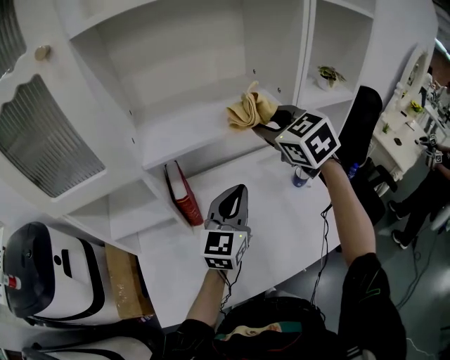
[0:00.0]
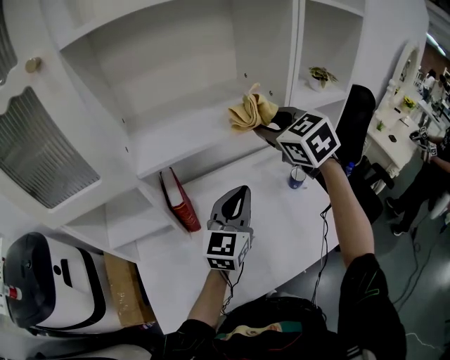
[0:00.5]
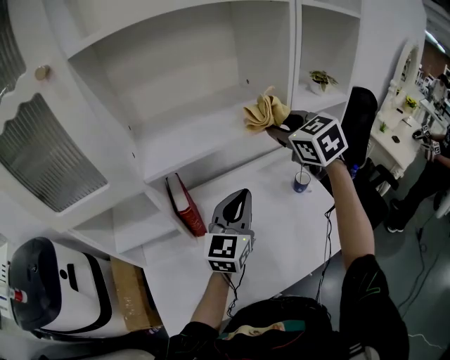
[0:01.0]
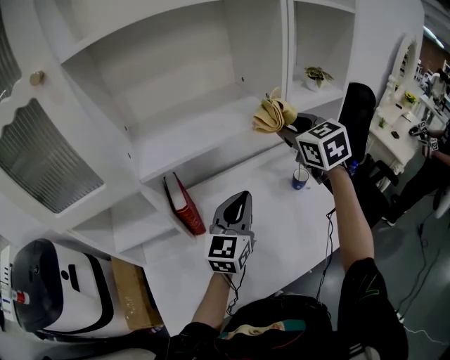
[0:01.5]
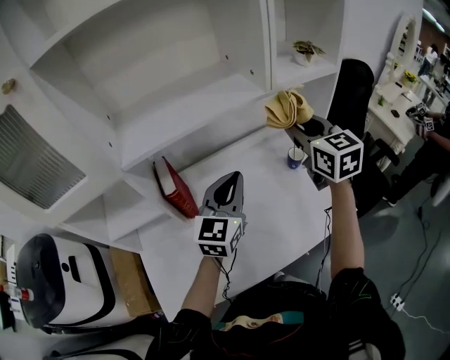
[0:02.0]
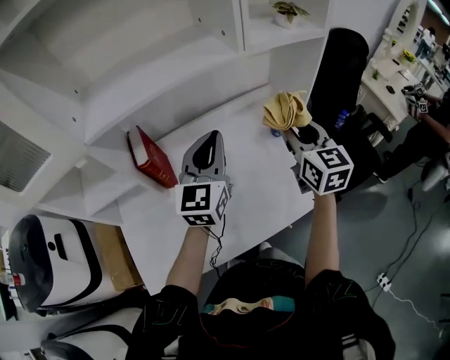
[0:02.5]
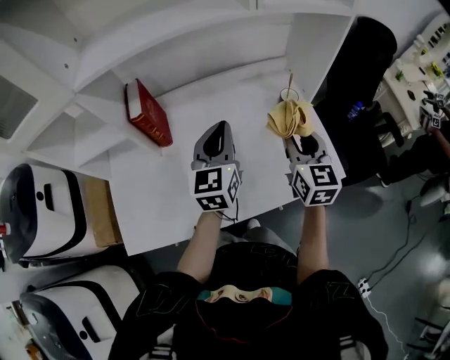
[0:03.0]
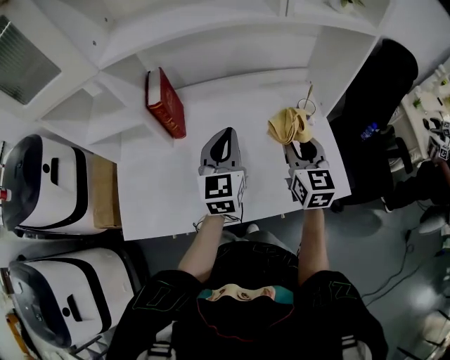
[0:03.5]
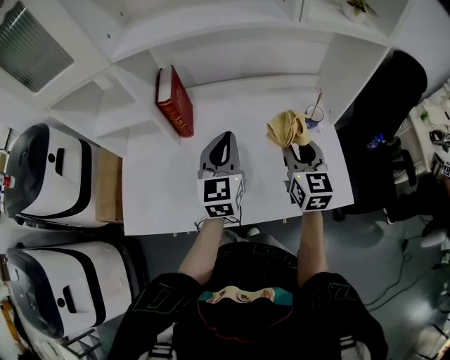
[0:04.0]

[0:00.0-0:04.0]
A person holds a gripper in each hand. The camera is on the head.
0:00.0 to 0:02.0: The right gripper shifts approximately 15 cm to the right, and changes its angle by roughly 30 degrees; the left gripper changes place by approximately 5 cm.
0:02.0 to 0:04.0: The right gripper is displaced downward and backward by about 20 cm; the left gripper travels downward by some 10 cm, and turns by some 30 degrees.

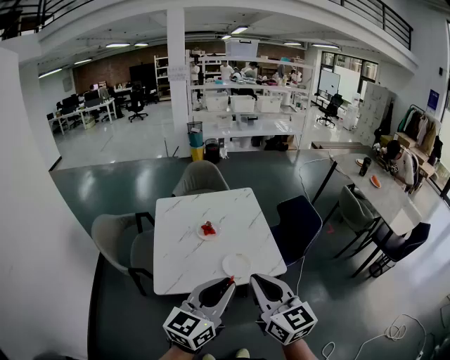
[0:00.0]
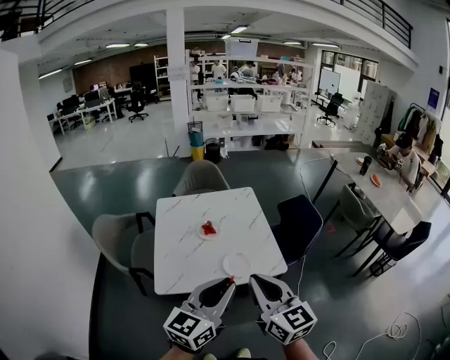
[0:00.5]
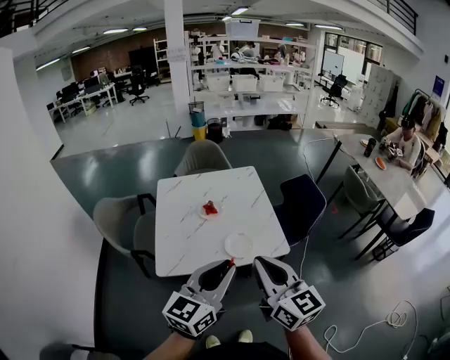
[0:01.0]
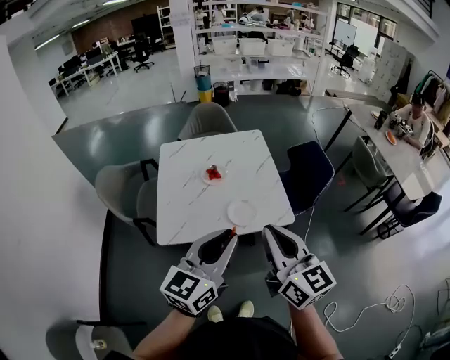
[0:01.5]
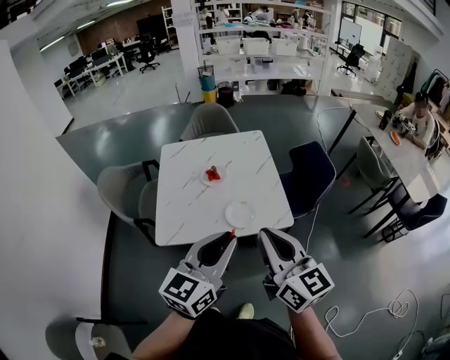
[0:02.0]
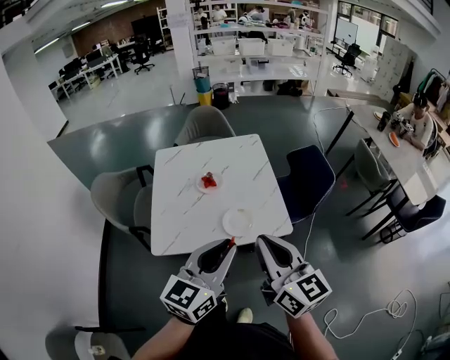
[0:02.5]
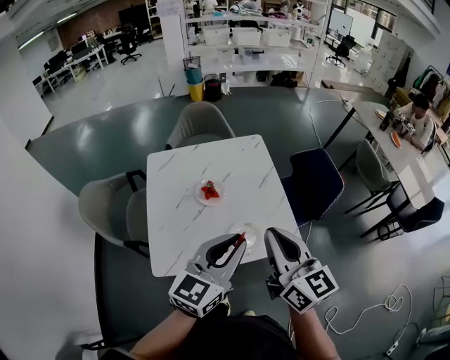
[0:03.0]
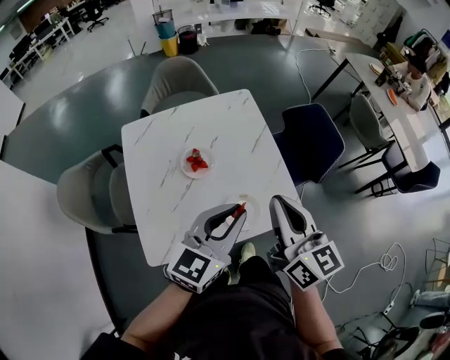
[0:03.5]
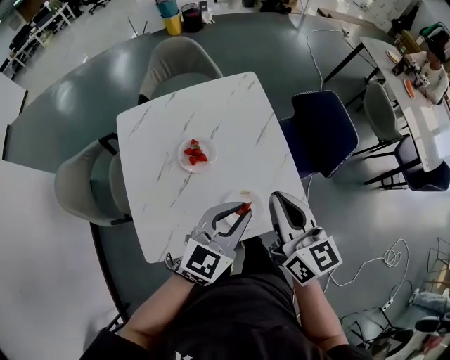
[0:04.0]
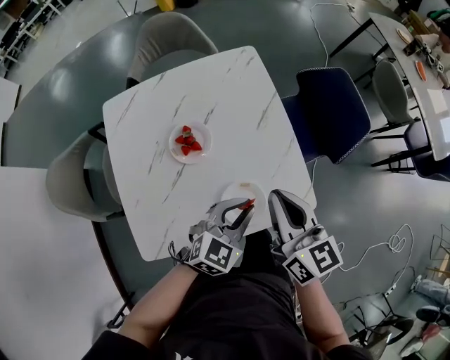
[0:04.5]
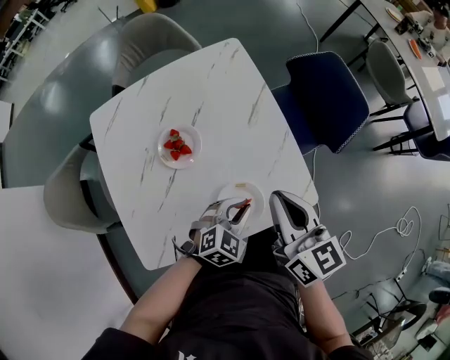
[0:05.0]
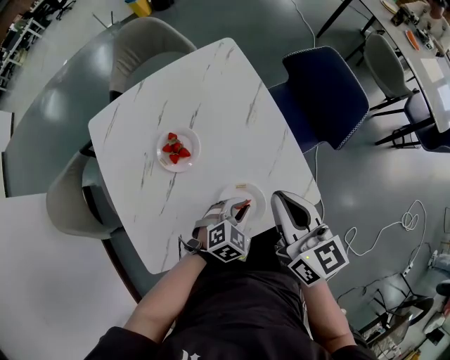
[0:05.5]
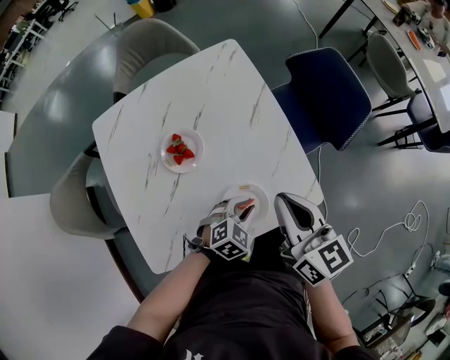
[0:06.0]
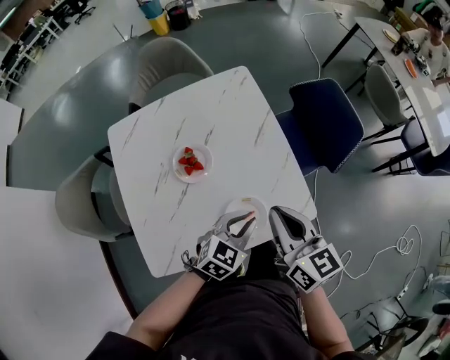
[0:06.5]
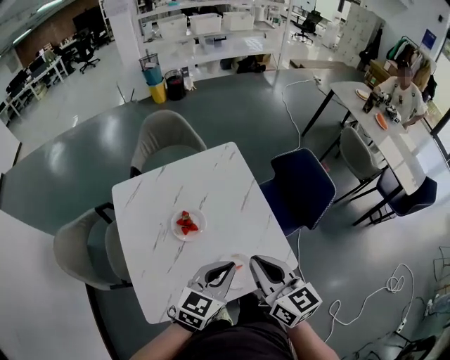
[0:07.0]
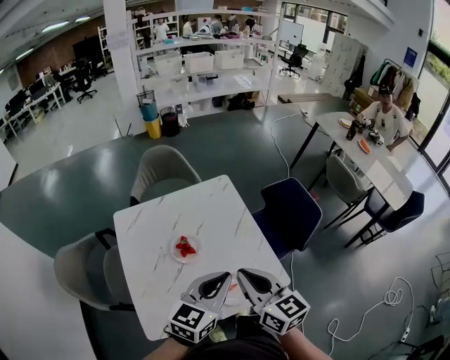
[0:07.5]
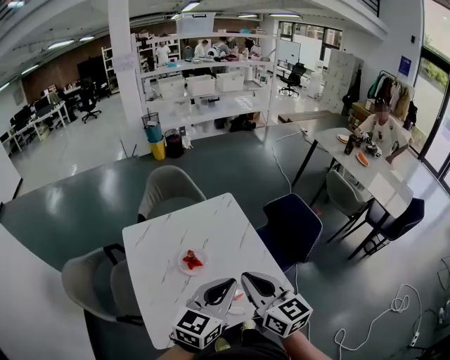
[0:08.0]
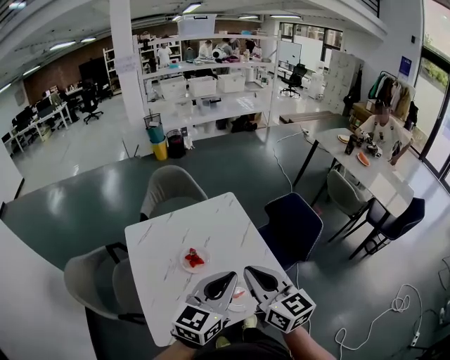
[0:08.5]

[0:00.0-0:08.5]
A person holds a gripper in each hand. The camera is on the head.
0:00.0 to 0:02.0: The right gripper goes about 5 cm to the right.
0:02.0 to 0:04.0: Both grippers move forward and downward, roughly 30 cm. The left gripper changes its angle by roughly 20 degrees.
0:04.0 to 0:06.5: The left gripper shifts some 15 cm downward, and rotates roughly 20 degrees; the right gripper moves downward, approximately 5 cm.
0:06.5 to 0:08.5: The left gripper heads upward, covering about 30 cm, and swivels some 30 degrees; the right gripper travels upward by approximately 15 cm.

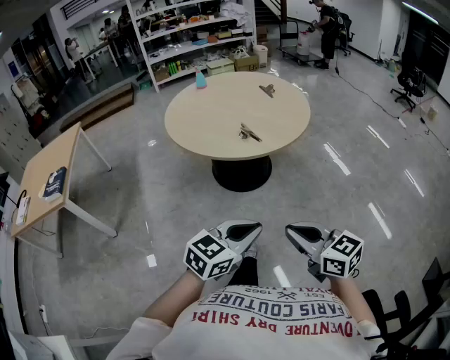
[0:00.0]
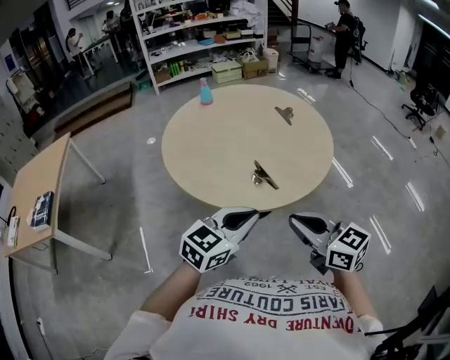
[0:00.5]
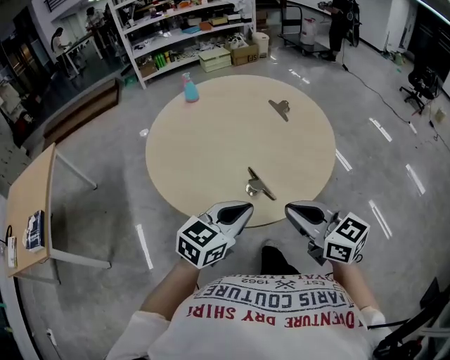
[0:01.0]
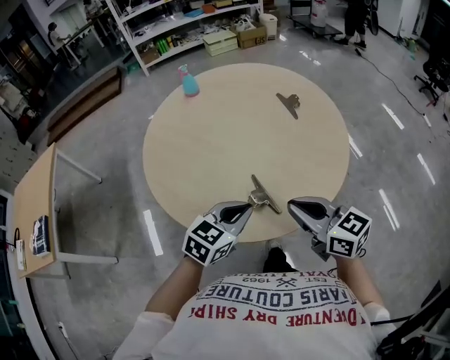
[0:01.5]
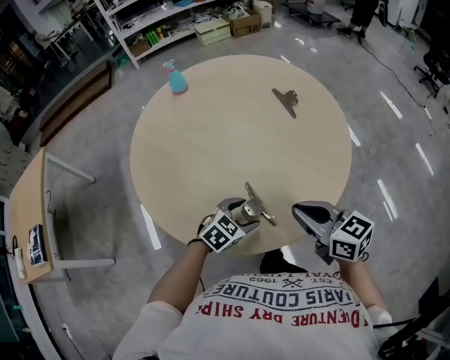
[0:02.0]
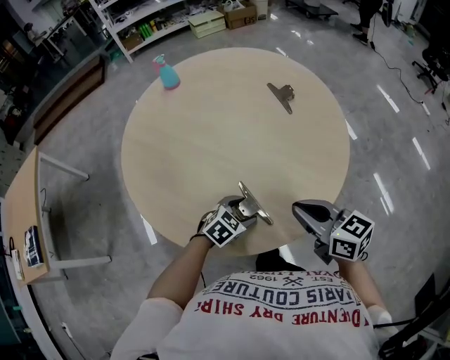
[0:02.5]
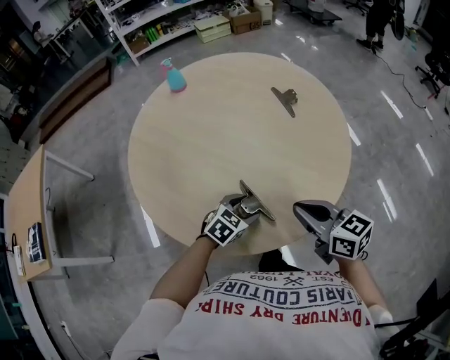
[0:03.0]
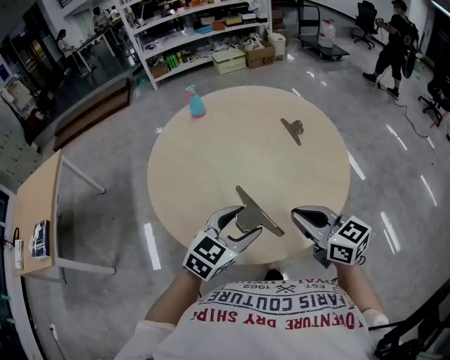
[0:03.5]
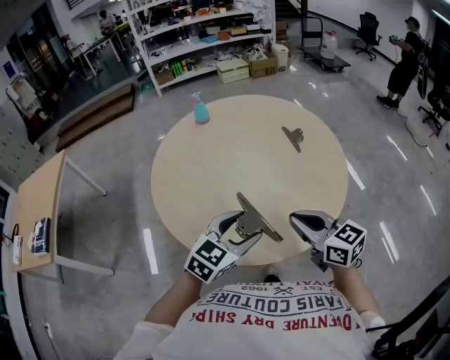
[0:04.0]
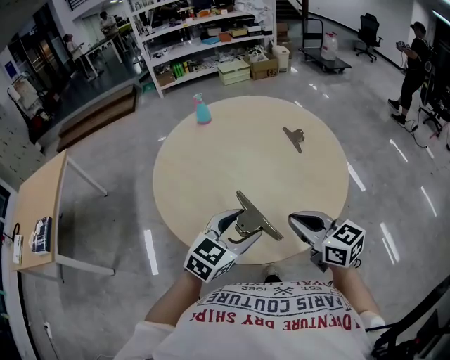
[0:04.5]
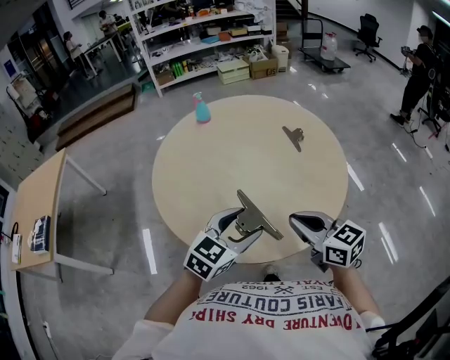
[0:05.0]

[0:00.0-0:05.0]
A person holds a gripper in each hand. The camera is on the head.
0:00.0 to 0:02.5: The two grippers travel together, forward, about 50 cm. The left gripper is displaced downward by roughly 25 cm, tips its fingers downward by some 30 degrees, and opens.
0:02.5 to 0:05.0: The right gripper heads upward, covering about 5 cm. The left gripper heads upward, covering about 25 cm, and changes its angle by about 30 degrees.

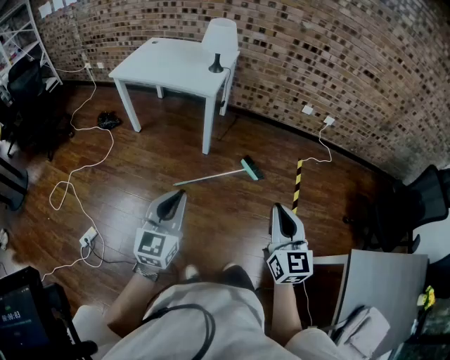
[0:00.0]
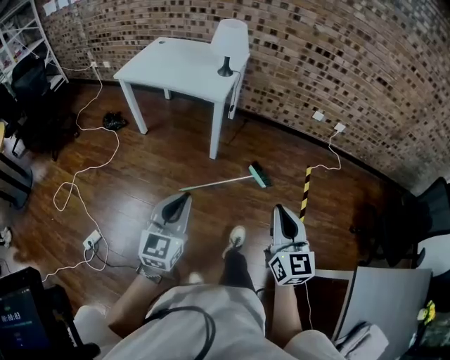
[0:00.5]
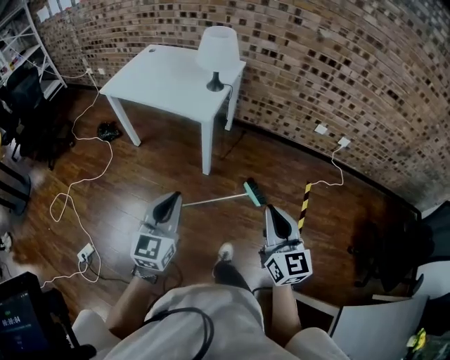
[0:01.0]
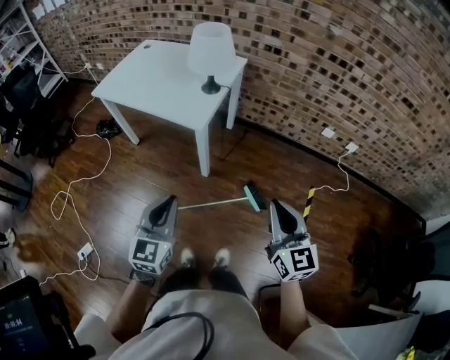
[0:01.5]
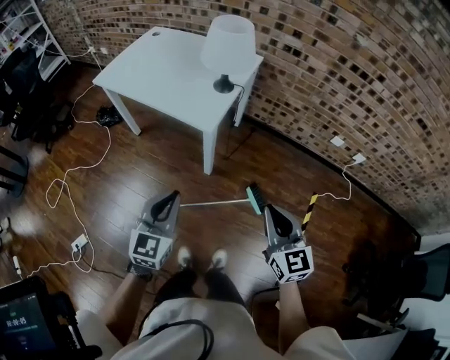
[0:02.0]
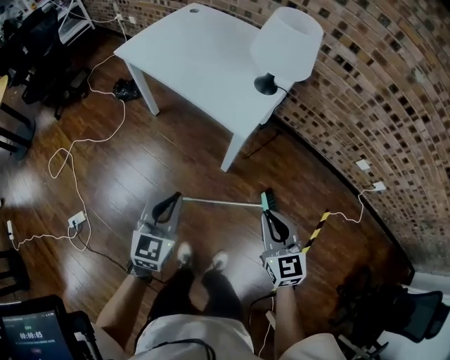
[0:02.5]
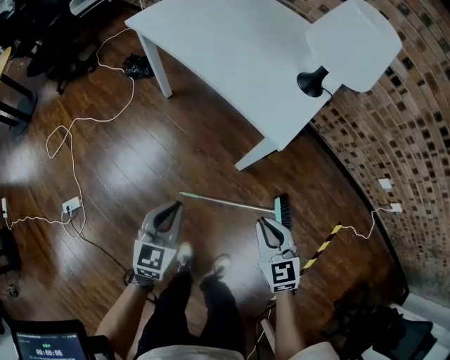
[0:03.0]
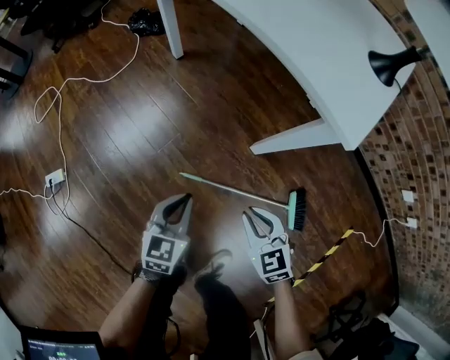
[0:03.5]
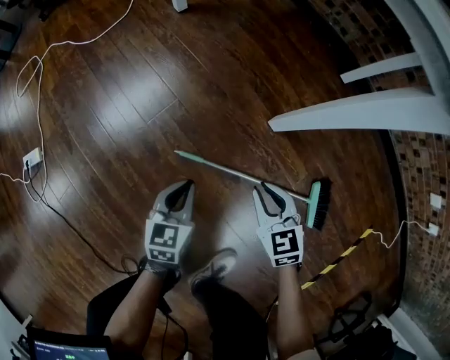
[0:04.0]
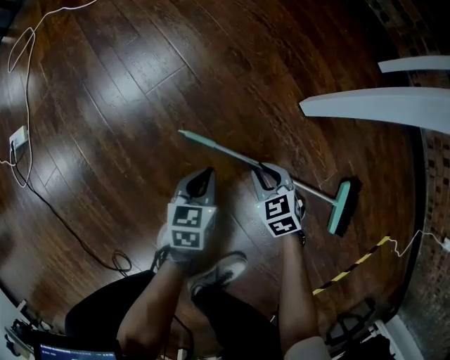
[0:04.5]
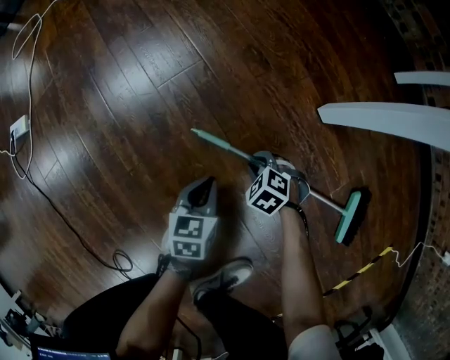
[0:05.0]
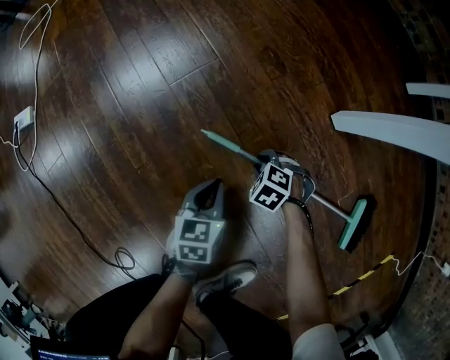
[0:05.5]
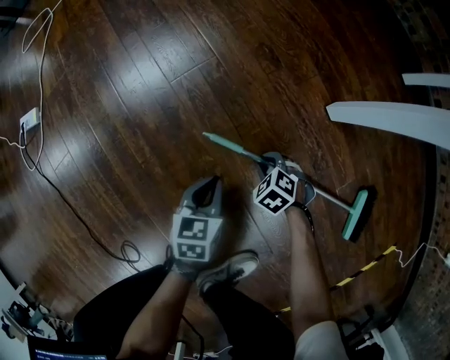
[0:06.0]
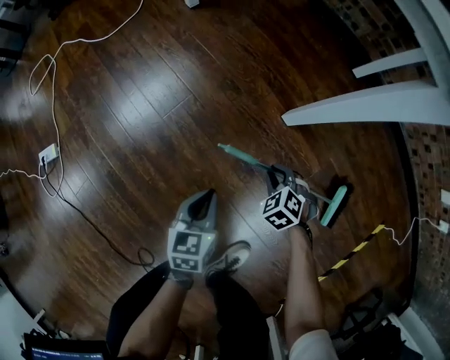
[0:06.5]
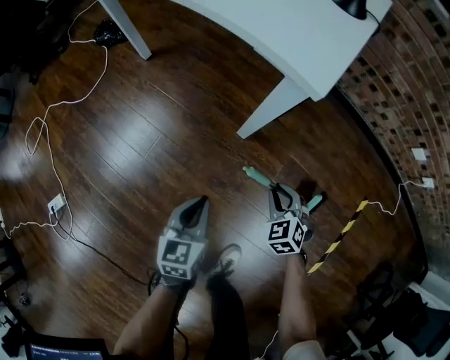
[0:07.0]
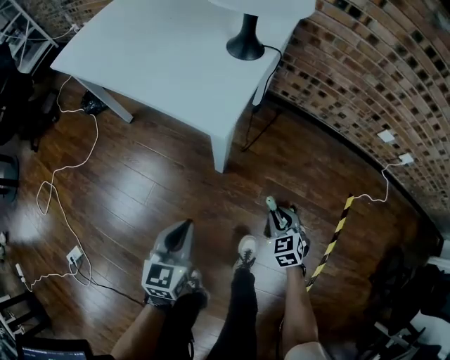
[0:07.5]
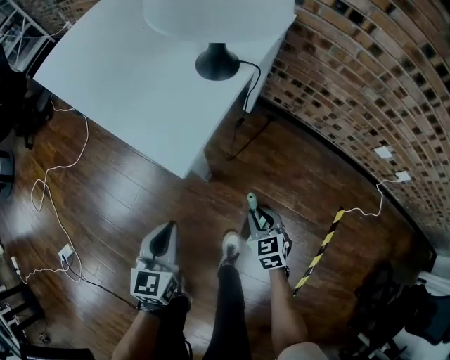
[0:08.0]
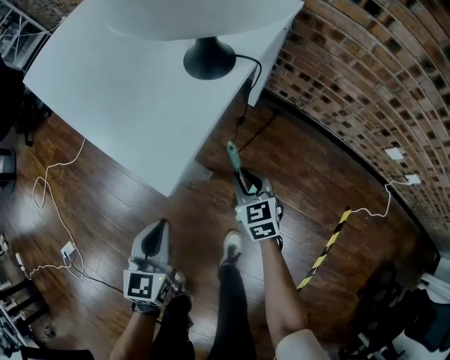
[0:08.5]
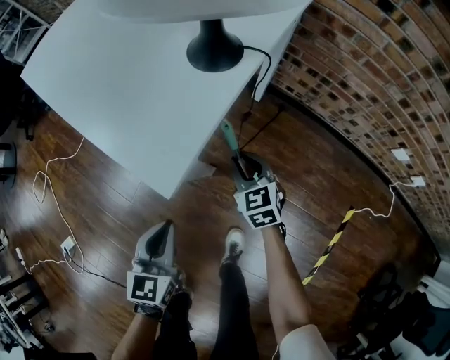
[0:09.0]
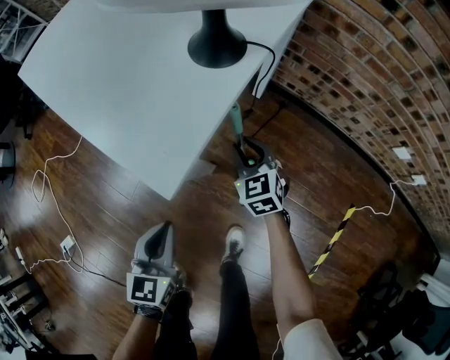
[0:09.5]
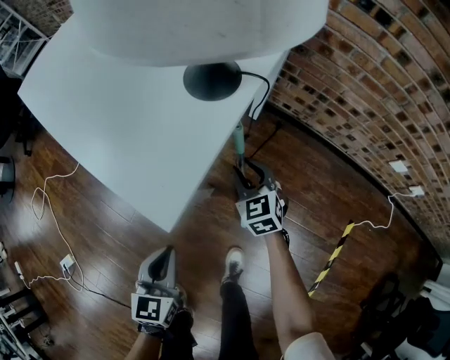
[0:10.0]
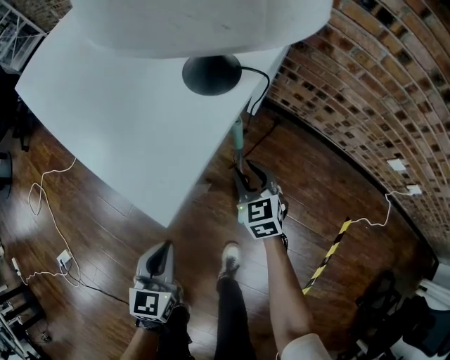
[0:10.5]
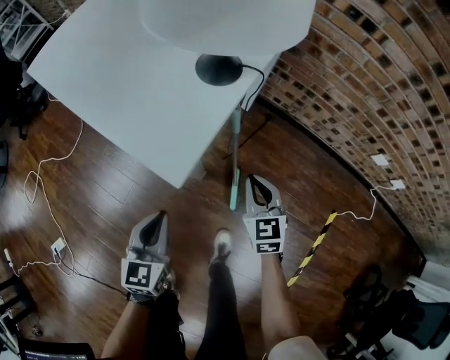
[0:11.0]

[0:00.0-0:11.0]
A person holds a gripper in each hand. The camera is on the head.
0:00.0 to 0:02.0: Both grippers travel together forward, some 40 cm. The right gripper swivels roughly 20 degrees.
0:02.0 to 0:03.5: Both grippers move downward, approximately 40 cm. The right gripper rotates some 40 degrees, while the left gripper turns by roughly 30 degrees.
0:03.5 to 0:05.5: The grippers both shift downward by about 50 cm. The left gripper rotates about 30 degrees; the right gripper tips its fingers downward by some 40 degrees.
0:05.5 to 0:07.5: Both grippers move upward, about 50 cm. The left gripper changes its angle by about 40 degrees, while the right gripper points its fingers approximately 30 degrees further upward.
0:07.5 to 0:09.0: The right gripper goes some 25 cm forward; the left gripper travels forward and to the right by roughly 10 cm.
0:09.0 to 0:11.0: The right gripper is displaced upward and backward by roughly 10 cm.
